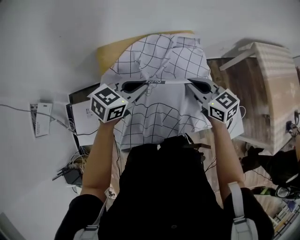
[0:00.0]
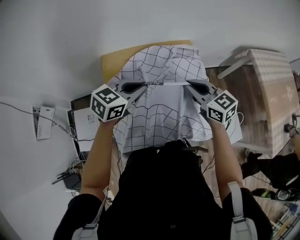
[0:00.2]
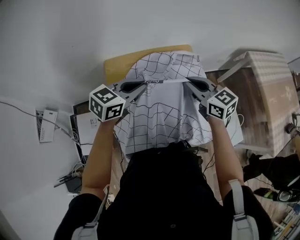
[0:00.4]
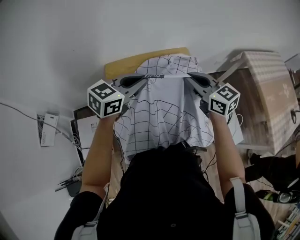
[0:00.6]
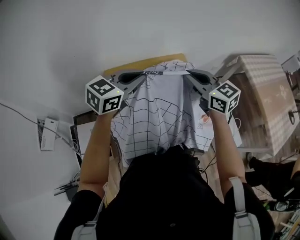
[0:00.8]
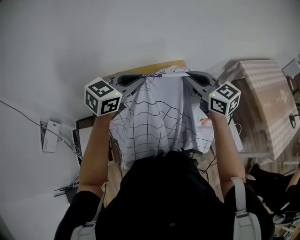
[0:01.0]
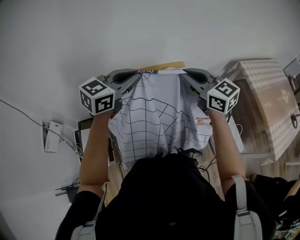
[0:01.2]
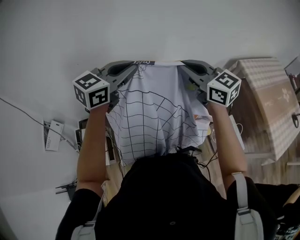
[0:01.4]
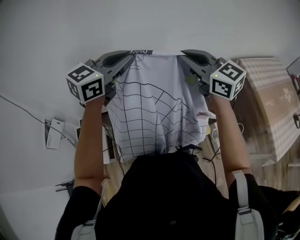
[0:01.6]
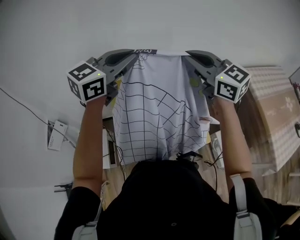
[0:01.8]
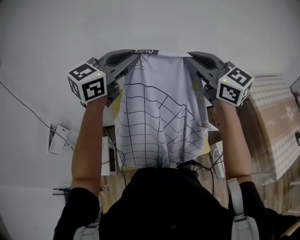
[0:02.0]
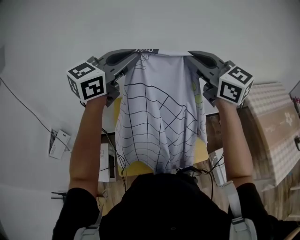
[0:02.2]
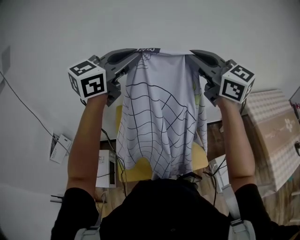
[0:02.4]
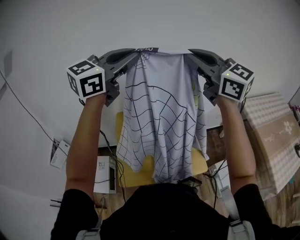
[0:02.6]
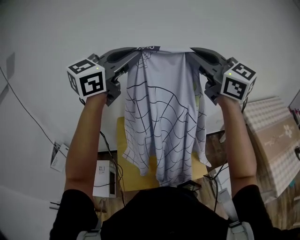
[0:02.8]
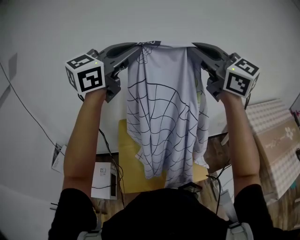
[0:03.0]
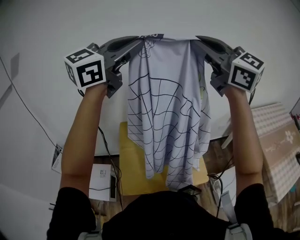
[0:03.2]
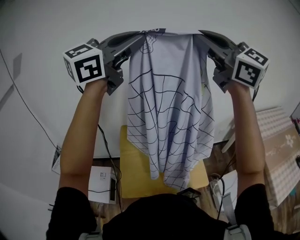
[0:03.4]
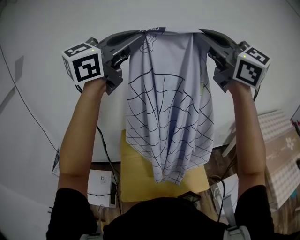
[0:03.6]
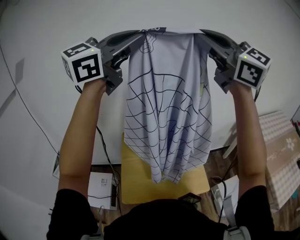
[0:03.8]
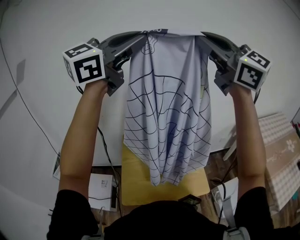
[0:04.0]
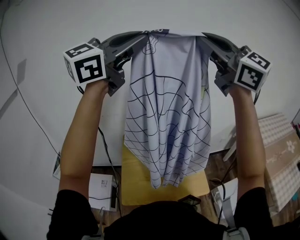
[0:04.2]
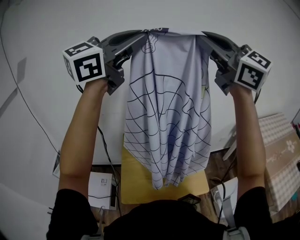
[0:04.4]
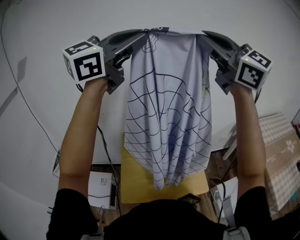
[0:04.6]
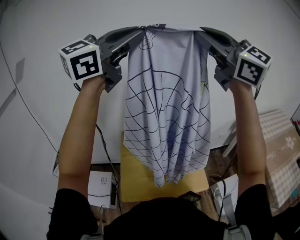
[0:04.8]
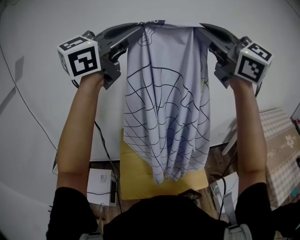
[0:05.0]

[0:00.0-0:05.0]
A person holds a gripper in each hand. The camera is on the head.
0:00.0 to 0:01.6: Both grippers travel together upward, approximately 20 cm. The left gripper turns by roughly 30 degrees; the right gripper changes its angle by about 30 degrees.
0:01.6 to 0:05.0: There are only small adjustments of the grippers.

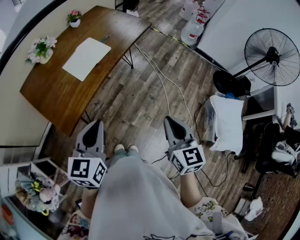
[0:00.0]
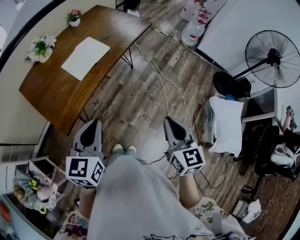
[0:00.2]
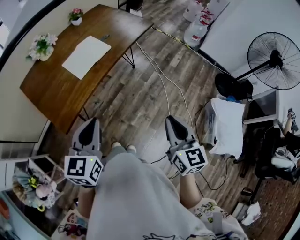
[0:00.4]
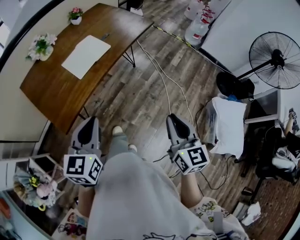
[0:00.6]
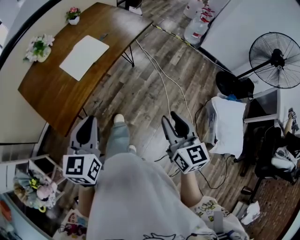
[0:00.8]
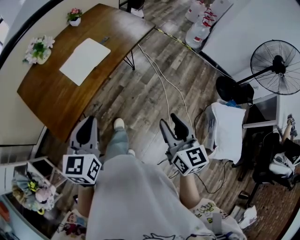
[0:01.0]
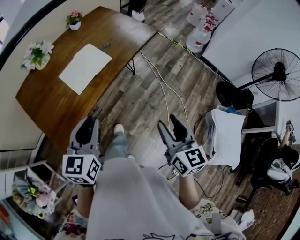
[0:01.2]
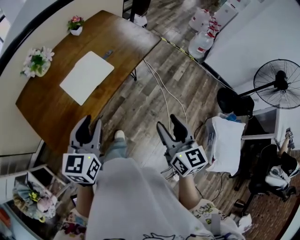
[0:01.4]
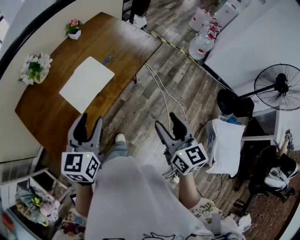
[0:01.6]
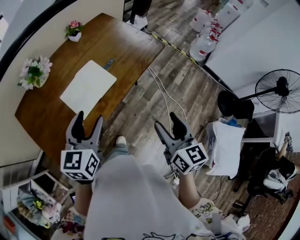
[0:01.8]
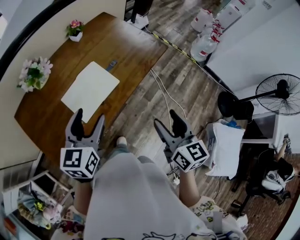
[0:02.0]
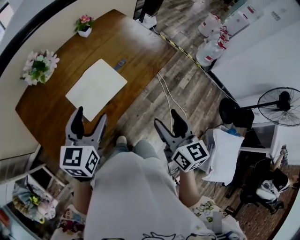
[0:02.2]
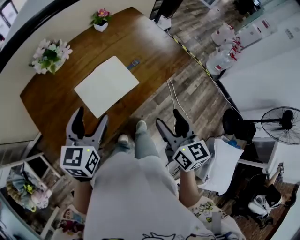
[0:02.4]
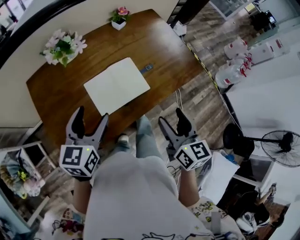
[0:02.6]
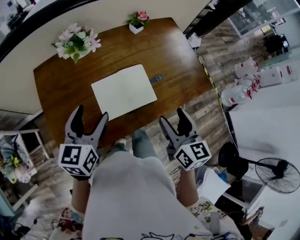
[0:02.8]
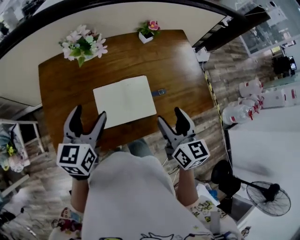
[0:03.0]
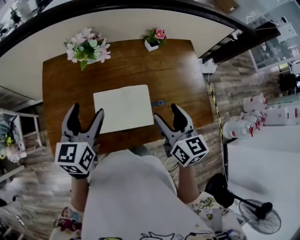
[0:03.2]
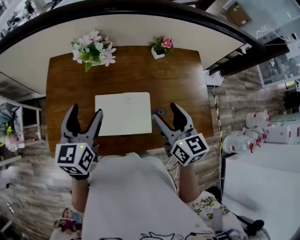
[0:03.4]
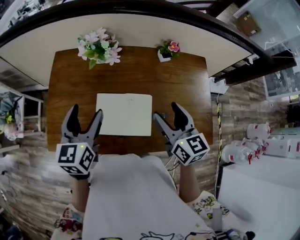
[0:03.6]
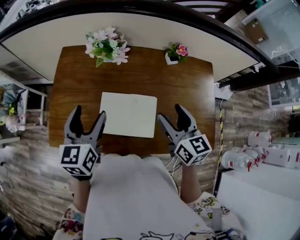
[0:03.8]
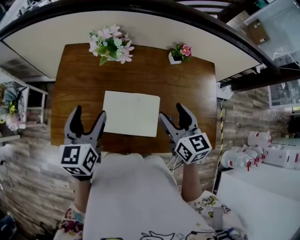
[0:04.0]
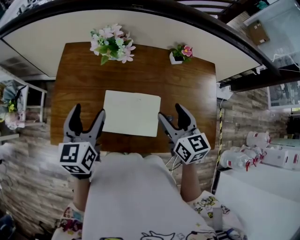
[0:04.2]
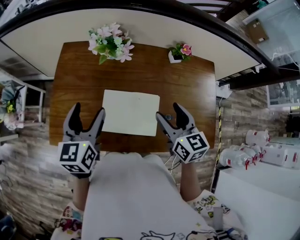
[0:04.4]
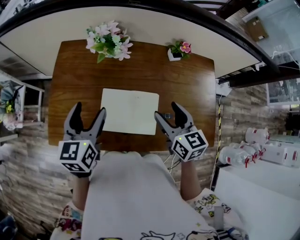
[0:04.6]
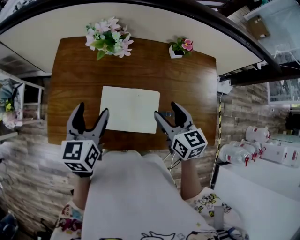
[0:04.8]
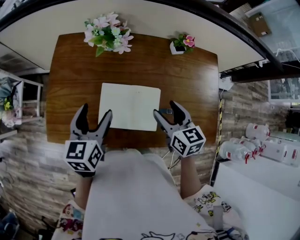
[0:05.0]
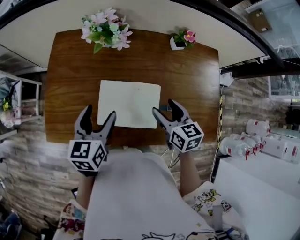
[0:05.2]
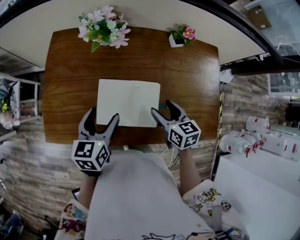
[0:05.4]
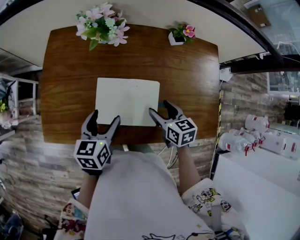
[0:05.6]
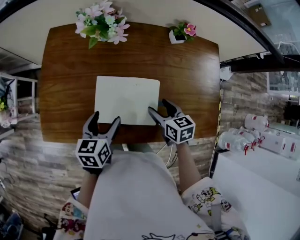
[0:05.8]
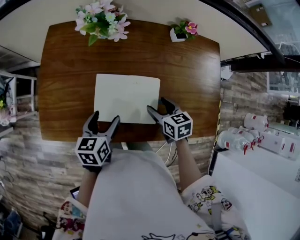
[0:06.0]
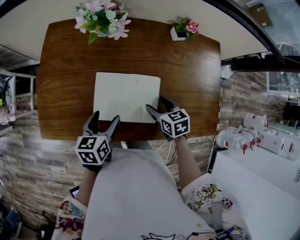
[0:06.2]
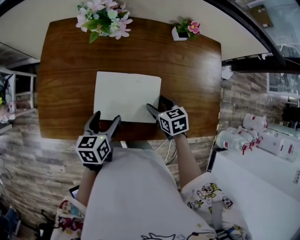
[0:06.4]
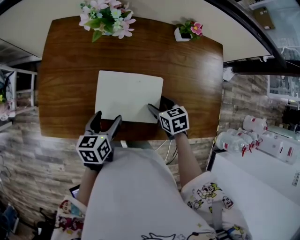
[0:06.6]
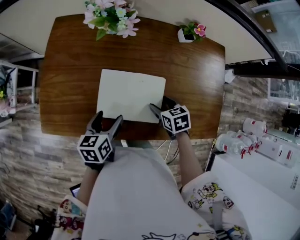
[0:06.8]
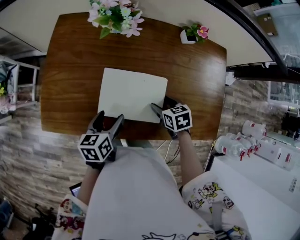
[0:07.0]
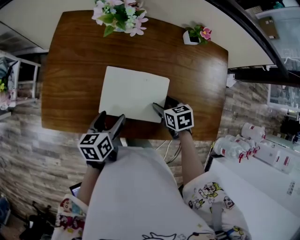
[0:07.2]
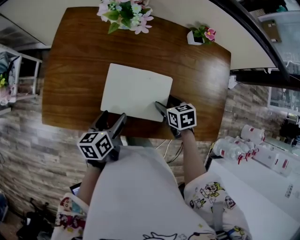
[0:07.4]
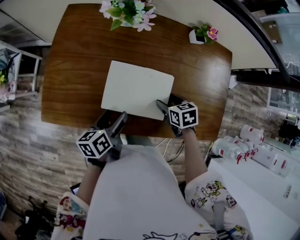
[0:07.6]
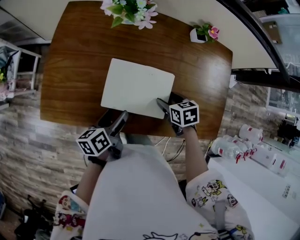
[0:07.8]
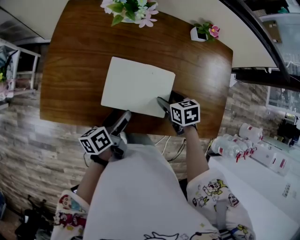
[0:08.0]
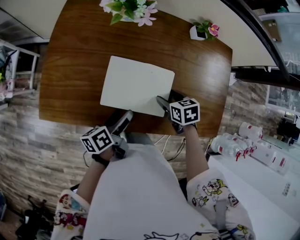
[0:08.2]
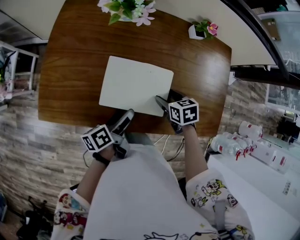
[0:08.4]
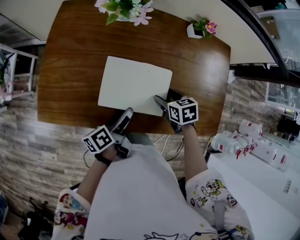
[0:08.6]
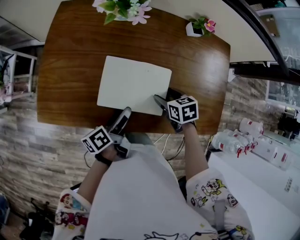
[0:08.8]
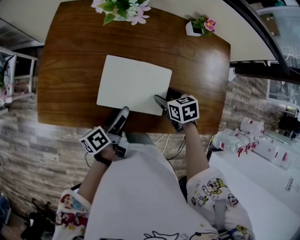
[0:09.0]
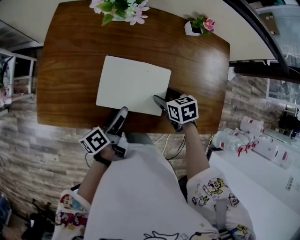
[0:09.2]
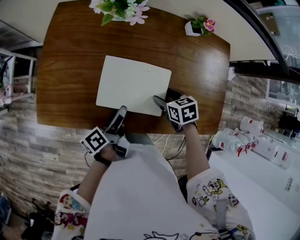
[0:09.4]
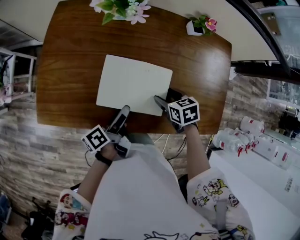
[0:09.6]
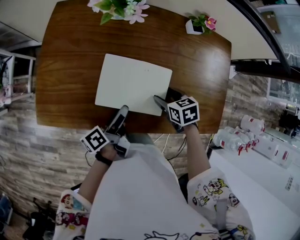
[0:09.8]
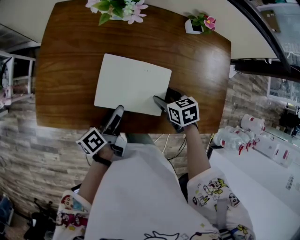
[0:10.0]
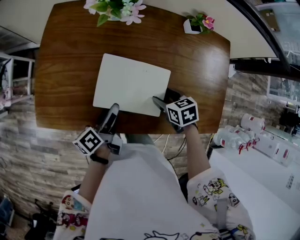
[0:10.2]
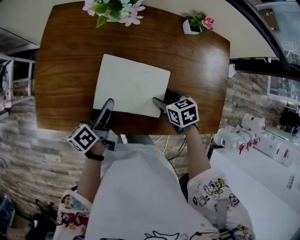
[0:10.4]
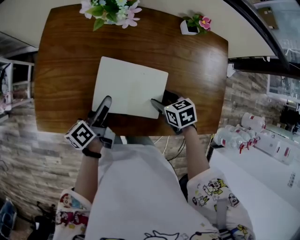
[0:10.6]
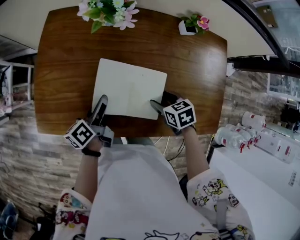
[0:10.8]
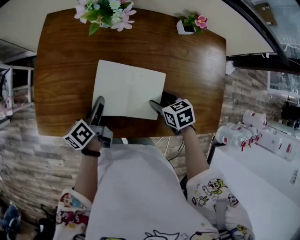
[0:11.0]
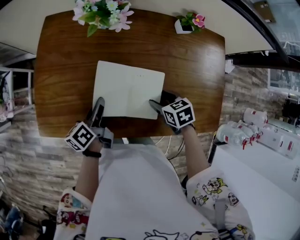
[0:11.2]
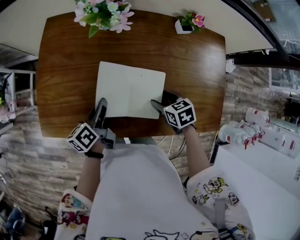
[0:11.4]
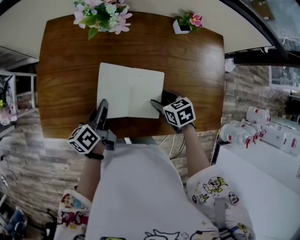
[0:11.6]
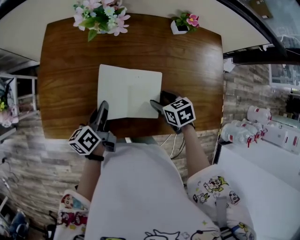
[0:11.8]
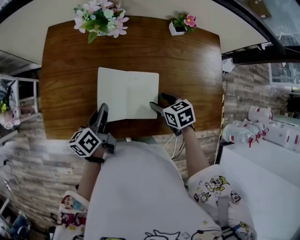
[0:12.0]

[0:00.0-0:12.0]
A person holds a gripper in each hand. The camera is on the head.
0:00.0 to 0:01.6: The two grippers go approximately 25 cm forward. The right gripper opens up. Meanwhile the left gripper opens its fingers.
0:01.6 to 0:03.0: The right gripper ends up approximately 35 cm from where it was, and swivels approximately 30 degrees. Meanwhile the left gripper shifts by approximately 20 cm, rotates some 30 degrees, and opens up.
0:03.0 to 0:04.4: The right gripper changes place by some 15 cm, and changes its angle by approximately 30 degrees, while the left gripper changes its angle by approximately 30 degrees.
0:04.4 to 0:06.0: The left gripper heads downward and backward, covering approximately 20 cm, and rotates approximately 30 degrees, while the right gripper travels downward by about 20 cm, and changes its angle by approximately 30 degrees.
0:06.0 to 0:07.6: The left gripper swivels roughly 30 degrees.
0:07.6 to 0:09.0: The left gripper swivels about 30 degrees.
0:09.0 to 0:10.4: The left gripper is displaced forward by approximately 5 cm.
0:10.4 to 0:12.0: The left gripper closes up.

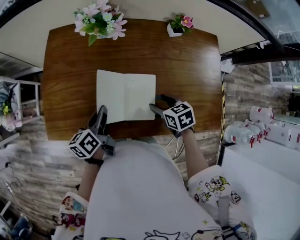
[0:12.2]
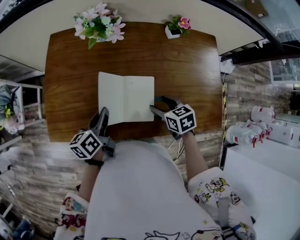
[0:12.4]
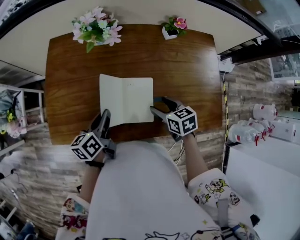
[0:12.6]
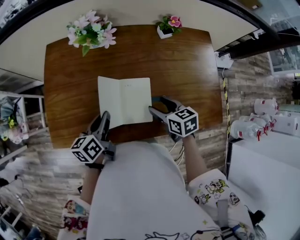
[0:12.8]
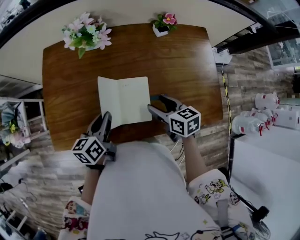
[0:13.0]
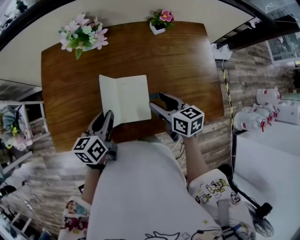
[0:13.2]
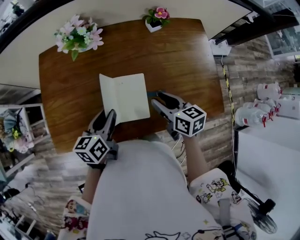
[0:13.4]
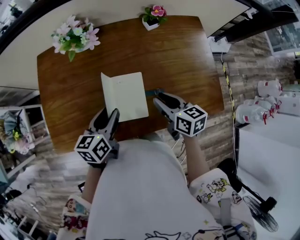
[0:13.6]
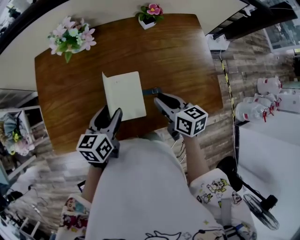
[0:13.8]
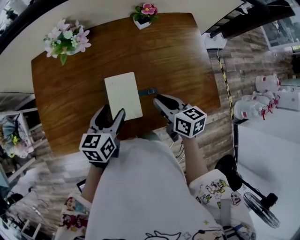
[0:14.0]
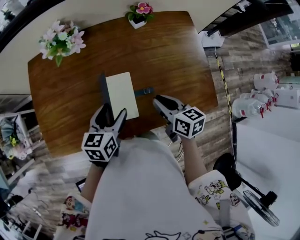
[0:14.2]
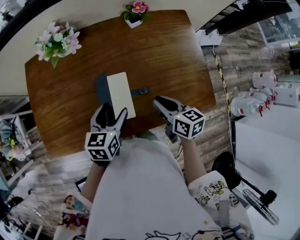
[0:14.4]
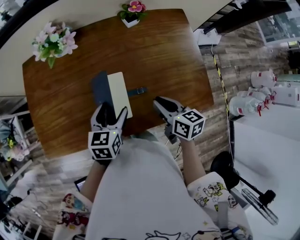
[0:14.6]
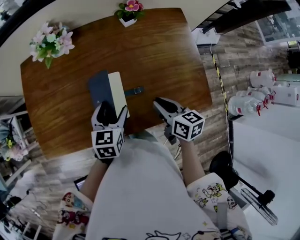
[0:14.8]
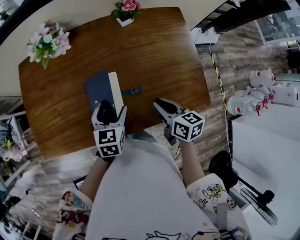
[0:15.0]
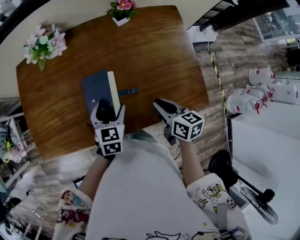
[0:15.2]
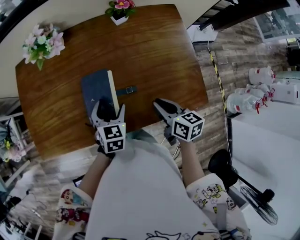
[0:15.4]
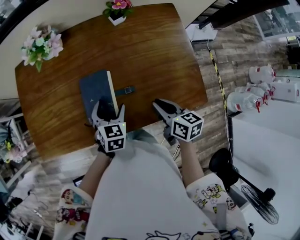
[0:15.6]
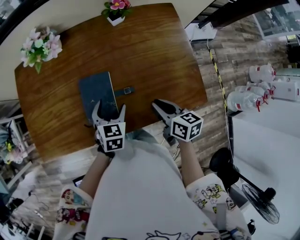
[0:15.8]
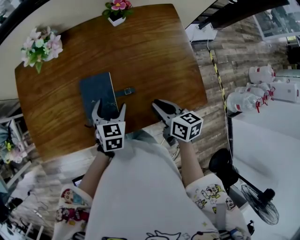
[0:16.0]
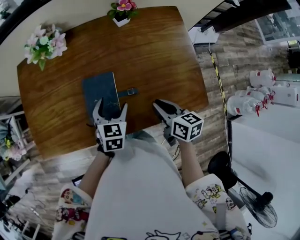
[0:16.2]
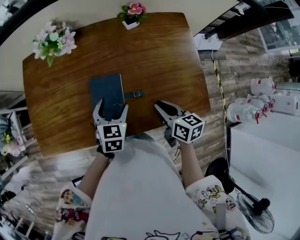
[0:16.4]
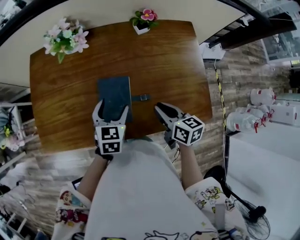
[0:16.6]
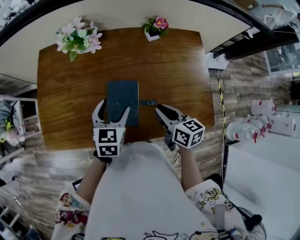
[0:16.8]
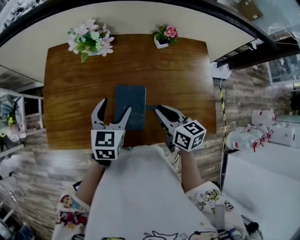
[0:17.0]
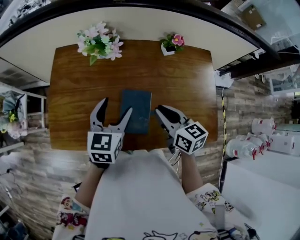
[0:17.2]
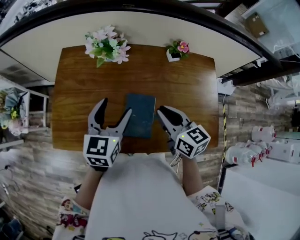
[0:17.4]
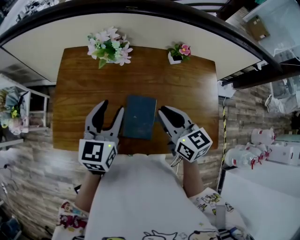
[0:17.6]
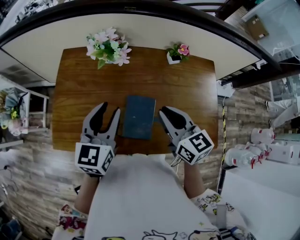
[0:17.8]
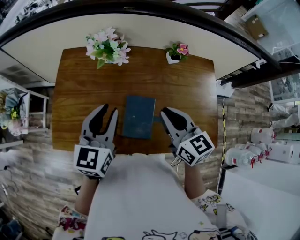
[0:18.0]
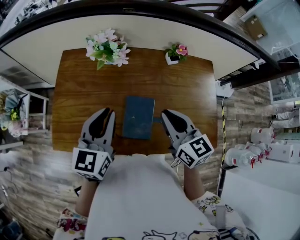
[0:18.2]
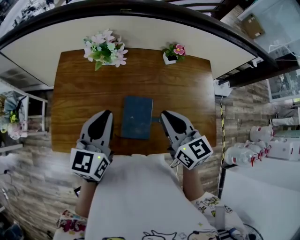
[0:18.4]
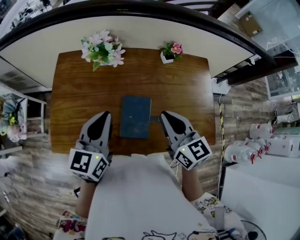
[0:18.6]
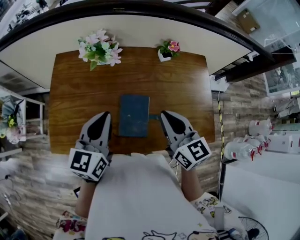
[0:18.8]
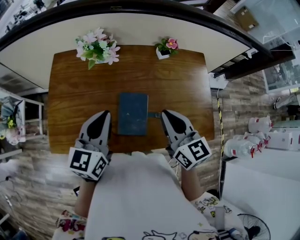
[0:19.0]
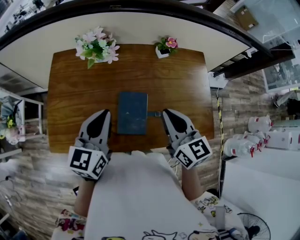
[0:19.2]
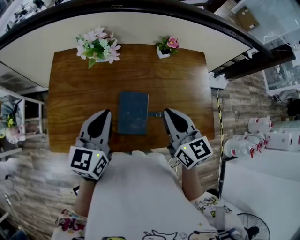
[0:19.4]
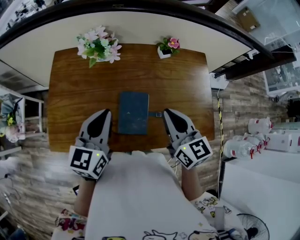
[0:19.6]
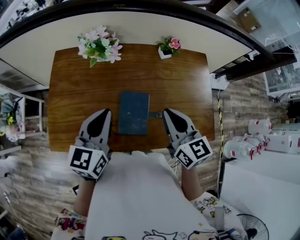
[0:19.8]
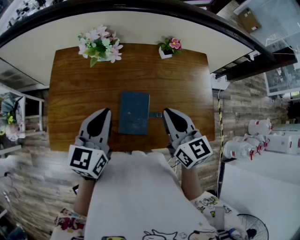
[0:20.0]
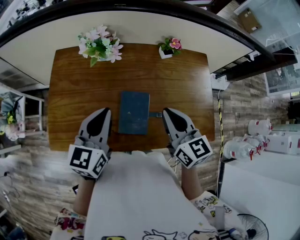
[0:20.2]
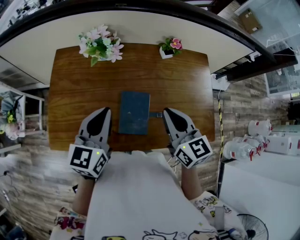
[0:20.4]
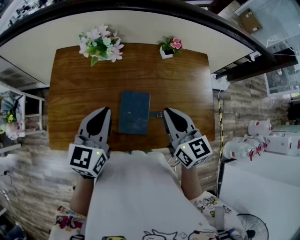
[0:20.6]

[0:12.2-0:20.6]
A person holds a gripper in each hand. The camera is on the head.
0:12.2 to 0:13.6: The left gripper goes about 10 cm to the right, swivels some 30 degrees, and opens, while the right gripper shifts about 10 cm upward, swivels roughly 30 degrees, and closes up.
0:13.6 to 0:15.0: The right gripper moves to the right, some 10 cm. Meanwhile the left gripper goes approximately 10 cm to the right and downward, changes its angle by some 30 degrees, and opens up.
0:15.0 to 0:16.4: The grippers stay close to where they were, moving slightly.
0:16.4 to 0:17.8: The left gripper travels upward and to the left by approximately 25 cm, rotates approximately 30 degrees, and closes. The right gripper is displaced upward, to the left and forward by some 25 cm, and rotates roughly 30 degrees.
0:17.8 to 0:19.2: The left gripper closes.
0:19.2 to 0:20.6: Neither gripper changes place.
